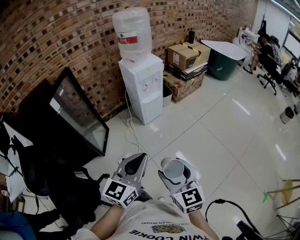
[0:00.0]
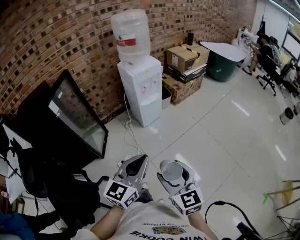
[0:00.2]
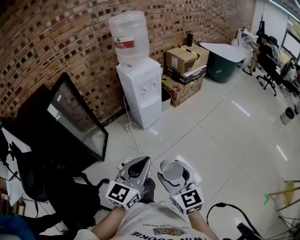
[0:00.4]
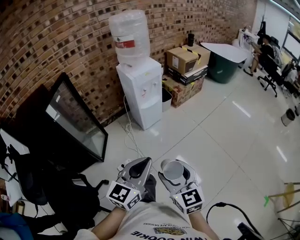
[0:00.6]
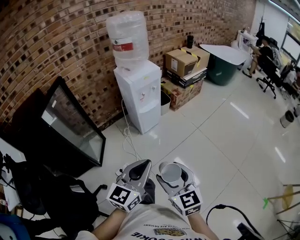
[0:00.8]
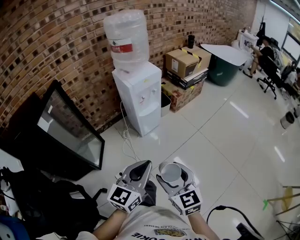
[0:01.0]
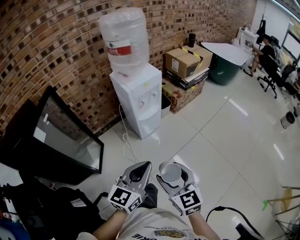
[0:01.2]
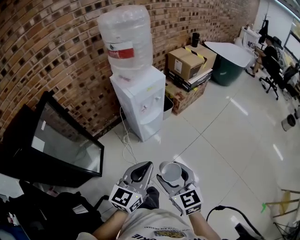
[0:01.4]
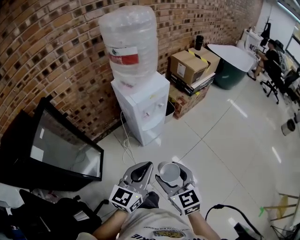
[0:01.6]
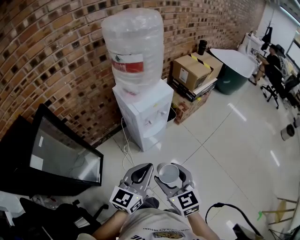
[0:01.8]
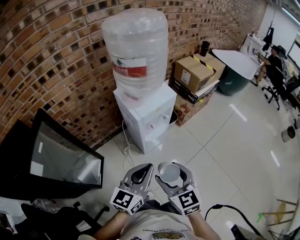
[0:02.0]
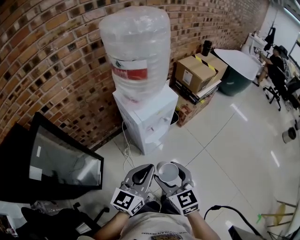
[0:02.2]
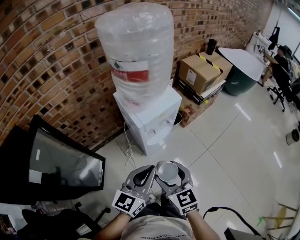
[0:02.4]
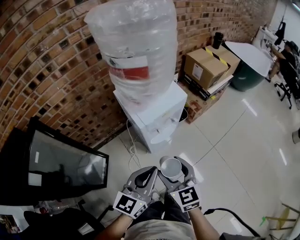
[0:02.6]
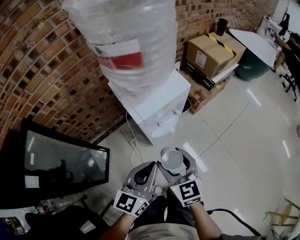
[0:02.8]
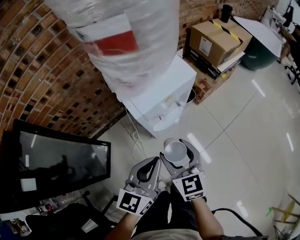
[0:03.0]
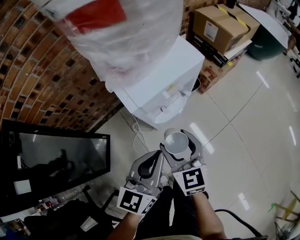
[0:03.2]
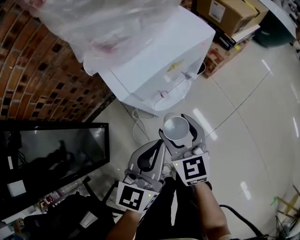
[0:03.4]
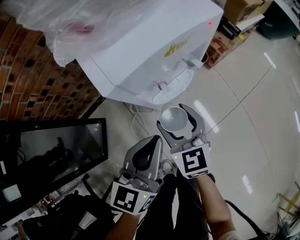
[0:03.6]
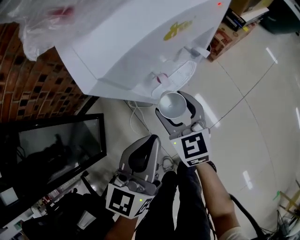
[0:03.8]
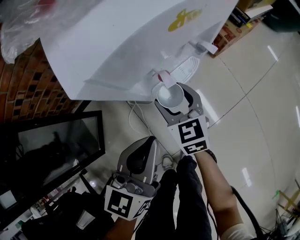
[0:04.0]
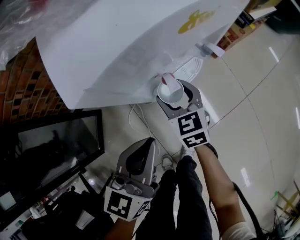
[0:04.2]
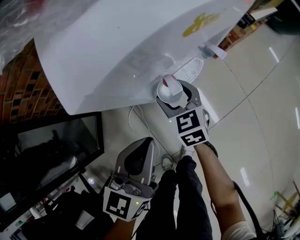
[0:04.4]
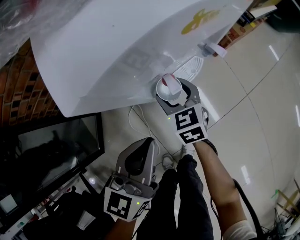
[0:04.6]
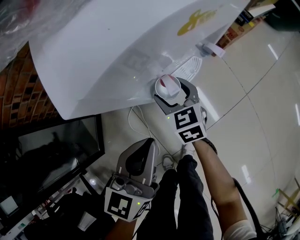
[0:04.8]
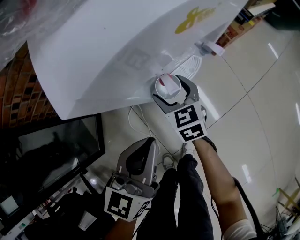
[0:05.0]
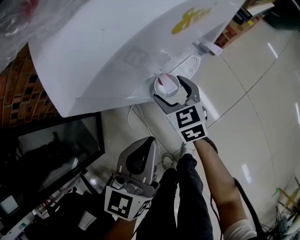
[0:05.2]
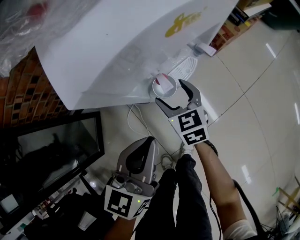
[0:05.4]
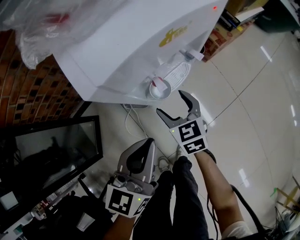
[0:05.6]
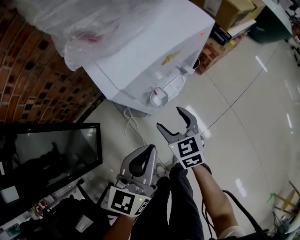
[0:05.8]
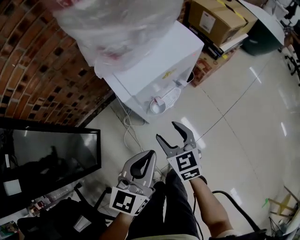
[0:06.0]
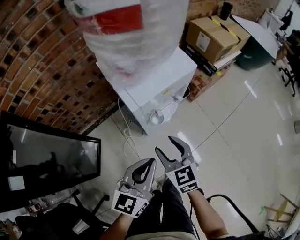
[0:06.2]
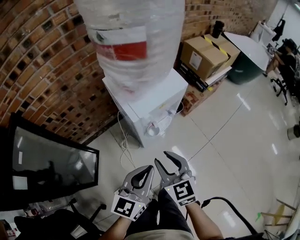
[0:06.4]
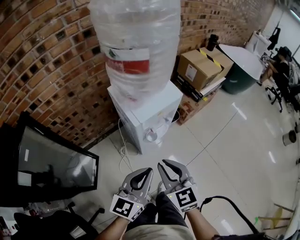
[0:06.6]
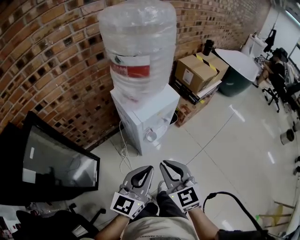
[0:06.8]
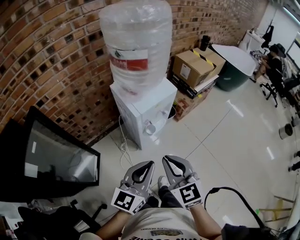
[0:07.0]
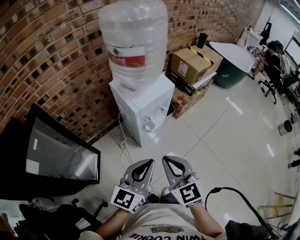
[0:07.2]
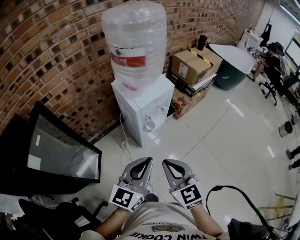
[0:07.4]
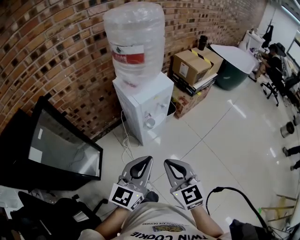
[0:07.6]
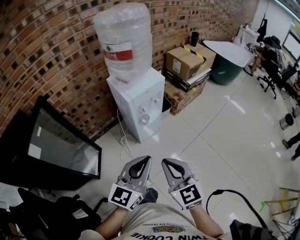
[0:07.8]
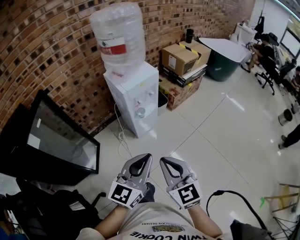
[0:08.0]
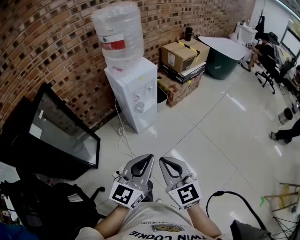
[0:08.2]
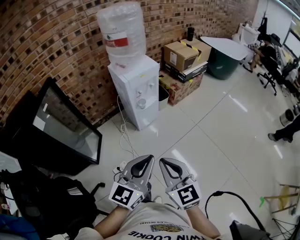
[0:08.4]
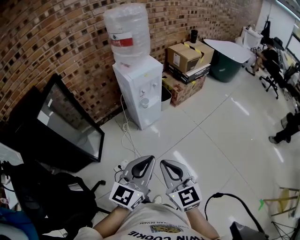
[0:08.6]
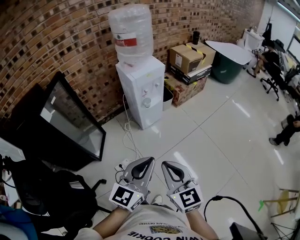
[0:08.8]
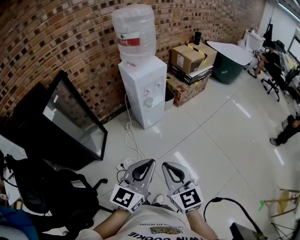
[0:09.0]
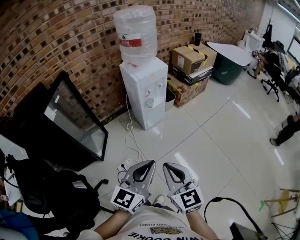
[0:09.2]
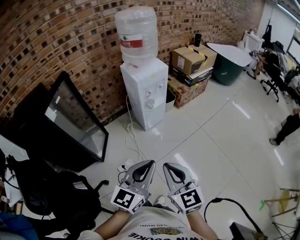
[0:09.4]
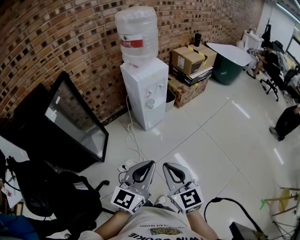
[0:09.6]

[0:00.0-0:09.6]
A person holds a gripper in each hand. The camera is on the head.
0:00.0 to 0:01.6: Both grippers move forward, approximately 30 cm.
0:01.6 to 0:03.2: Both grippers travel together forward and downward, some 30 cm.
0:03.2 to 0:04.8: The right gripper goes roughly 30 cm downward and forward. Meanwhile the left gripper is displaced downward by roughly 15 cm.
0:04.8 to 0:06.4: The left gripper heads upward and backward, covering some 20 cm. Meanwhile the right gripper is displaced upward and backward by approximately 35 cm, and closes up.
0:06.4 to 0:08.0: Both grippers move backward and upward, some 30 cm. The right gripper closes its fingers.
0:08.0 to 0:09.6: Both grippers travel together backward, about 15 cm.

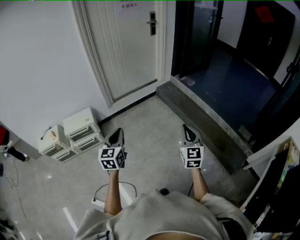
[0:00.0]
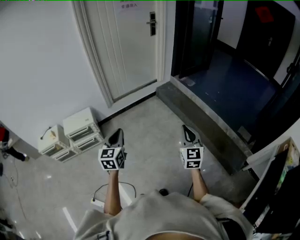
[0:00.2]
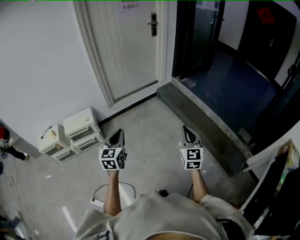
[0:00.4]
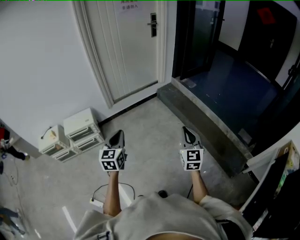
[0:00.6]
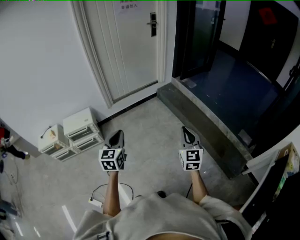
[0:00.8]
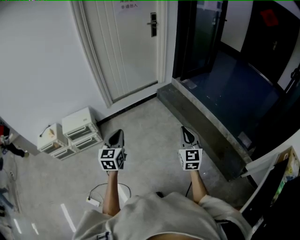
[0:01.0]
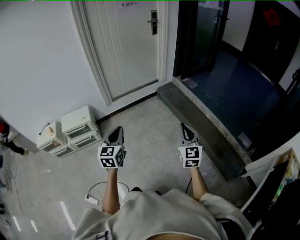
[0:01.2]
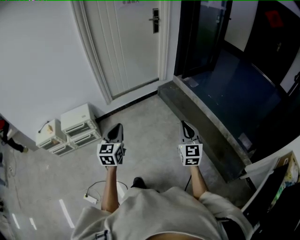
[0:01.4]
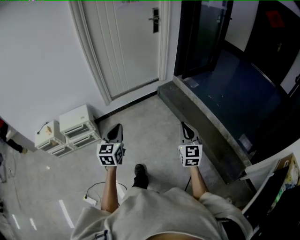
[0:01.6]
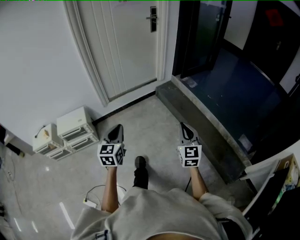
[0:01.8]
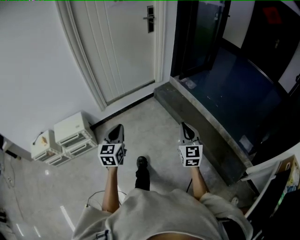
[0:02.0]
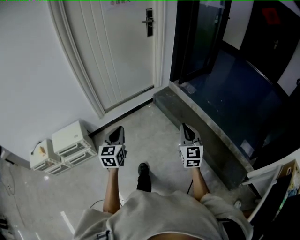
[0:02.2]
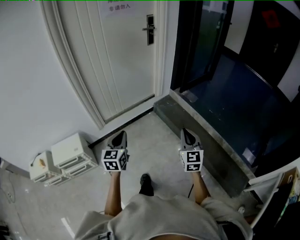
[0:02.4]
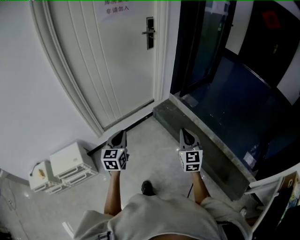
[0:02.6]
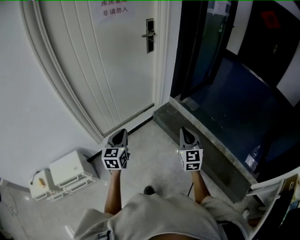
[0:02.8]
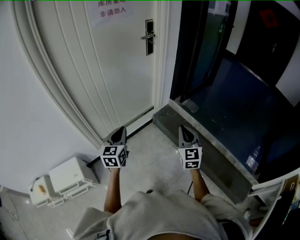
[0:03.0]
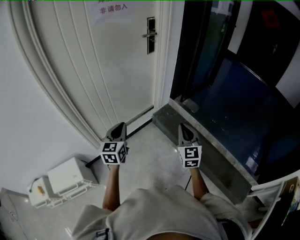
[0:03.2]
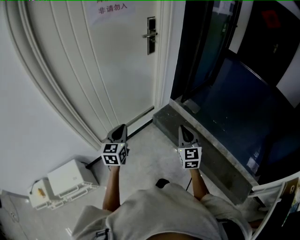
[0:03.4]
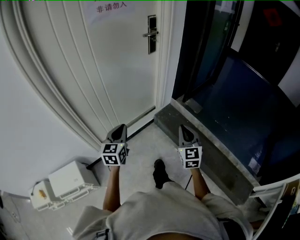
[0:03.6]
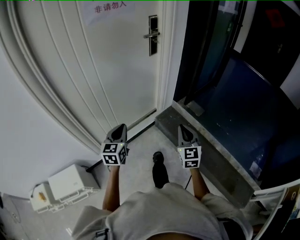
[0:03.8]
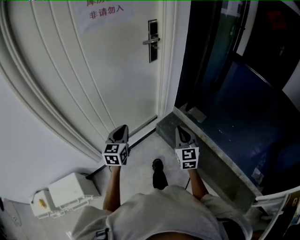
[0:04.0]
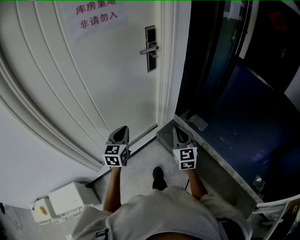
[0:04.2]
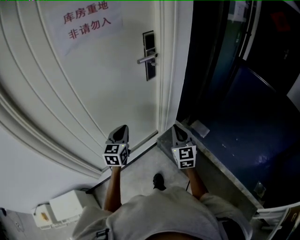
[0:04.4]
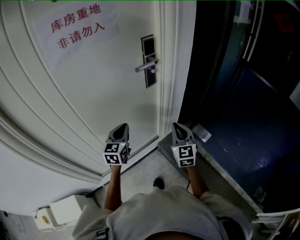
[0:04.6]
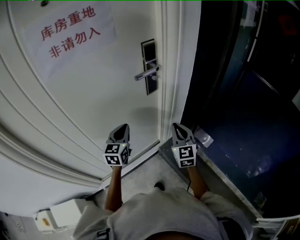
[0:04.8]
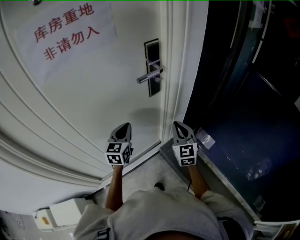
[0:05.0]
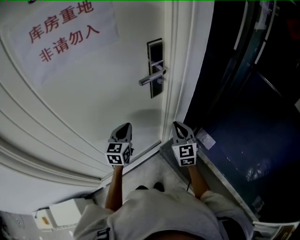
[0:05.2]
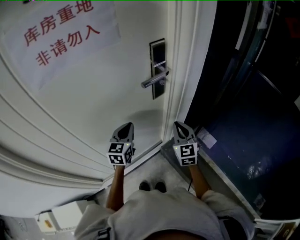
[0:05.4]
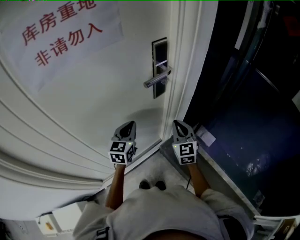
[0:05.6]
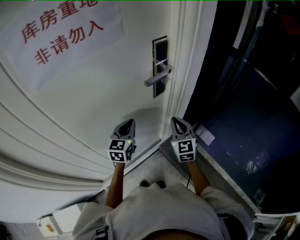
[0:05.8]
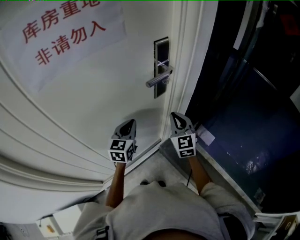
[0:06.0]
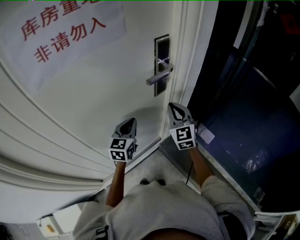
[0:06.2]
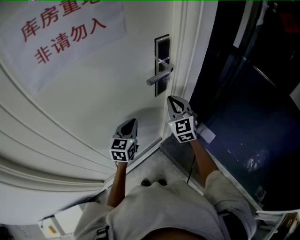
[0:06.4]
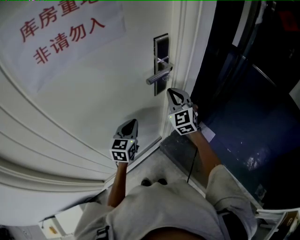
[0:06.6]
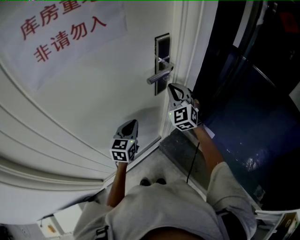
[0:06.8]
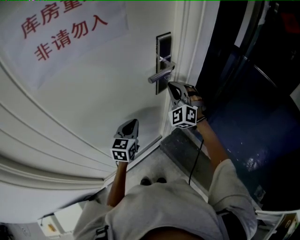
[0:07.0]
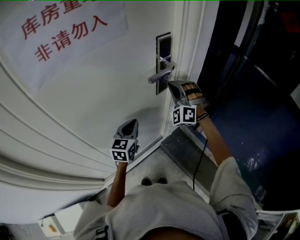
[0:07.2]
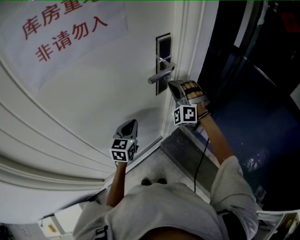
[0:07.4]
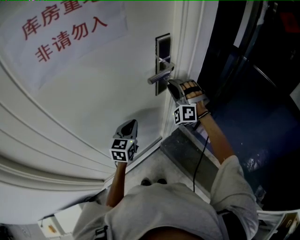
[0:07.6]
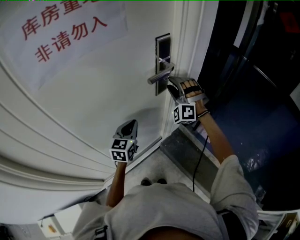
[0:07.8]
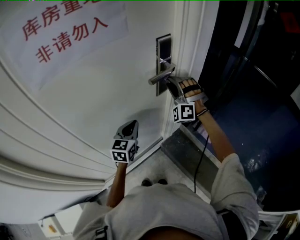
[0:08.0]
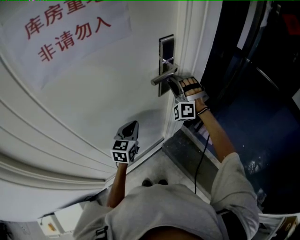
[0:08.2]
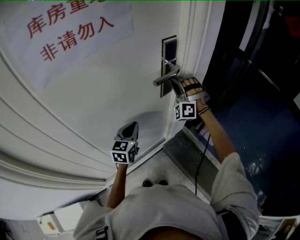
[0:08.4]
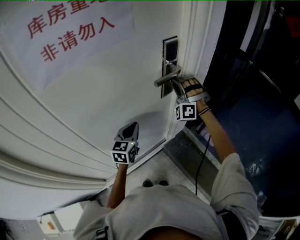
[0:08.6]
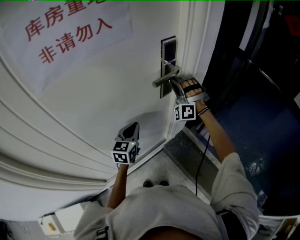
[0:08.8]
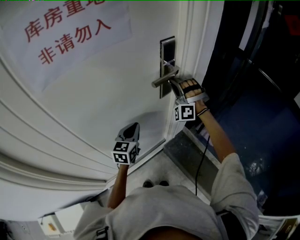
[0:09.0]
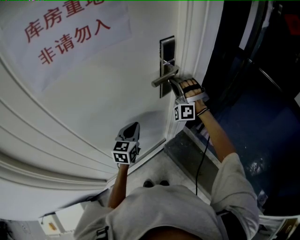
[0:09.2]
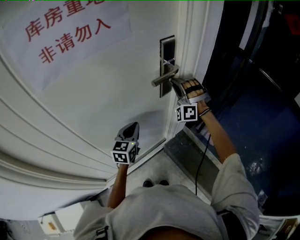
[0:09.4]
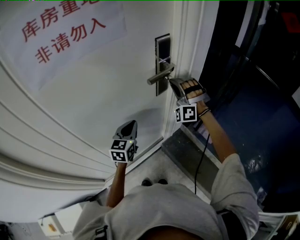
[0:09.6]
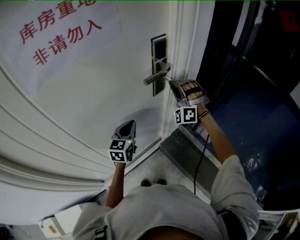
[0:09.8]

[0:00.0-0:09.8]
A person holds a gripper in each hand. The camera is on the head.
0:00.0 to 0:01.4: The right gripper is displaced forward and to the right by roughly 10 cm. Meanwhile the left gripper heads to the right and forward, covering approximately 10 cm.
0:01.4 to 0:02.8: The pair of grippers is taken forward, about 50 cm.
0:02.8 to 0:04.2: The two grippers go about 35 cm forward.
0:04.2 to 0:05.6: The two grippers go some 30 cm forward.
0:05.6 to 0:07.0: The right gripper shifts some 15 cm forward, upward and to the left, and rotates around the line of its fingers by about 50 degrees, counterclockwise from behind.
0:07.0 to 0:08.4: The right gripper swivels roughly 30 degrees, and opens, then closes again.
0:08.4 to 0:09.8: There are only small adjustments of the grippers.

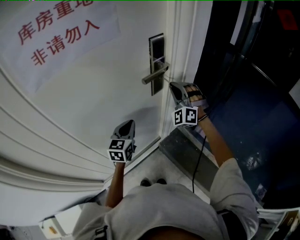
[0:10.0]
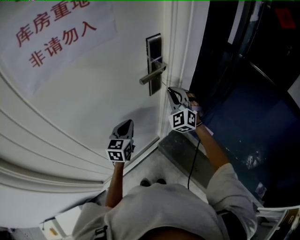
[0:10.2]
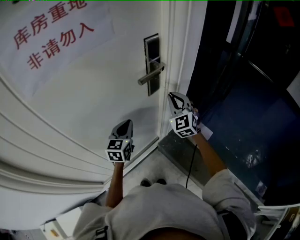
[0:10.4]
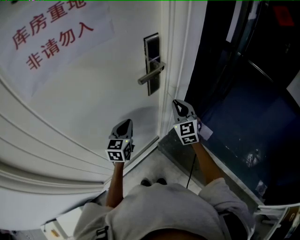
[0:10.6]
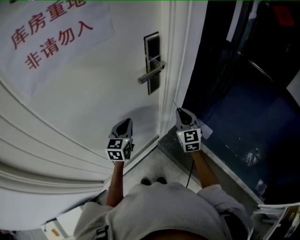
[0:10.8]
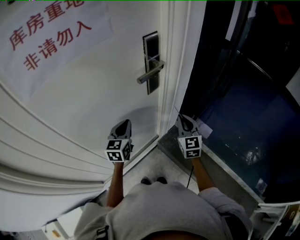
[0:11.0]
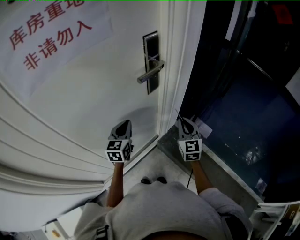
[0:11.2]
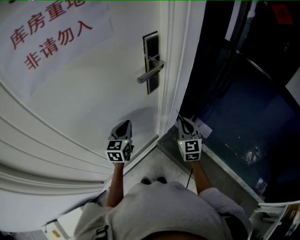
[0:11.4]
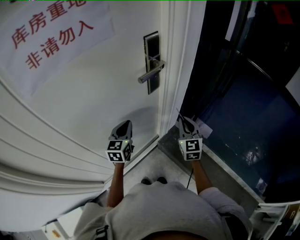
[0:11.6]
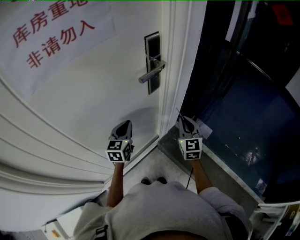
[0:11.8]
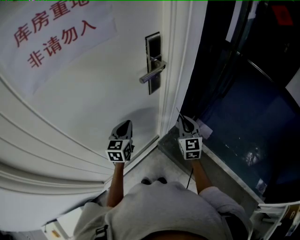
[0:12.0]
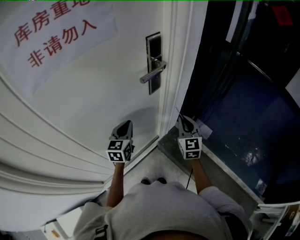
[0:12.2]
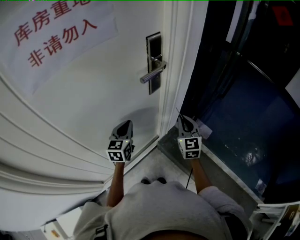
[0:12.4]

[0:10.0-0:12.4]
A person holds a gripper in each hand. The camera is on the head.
0:10.0 to 0:11.2: The right gripper heads backward, downward and to the right, covering approximately 15 cm, and twists about 60 degrees clockwise, seen from behind.
0:11.2 to 0:12.4: Both grippers stay about where they are.

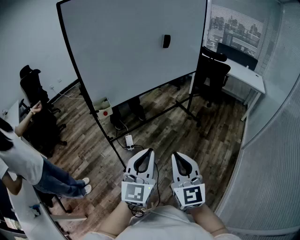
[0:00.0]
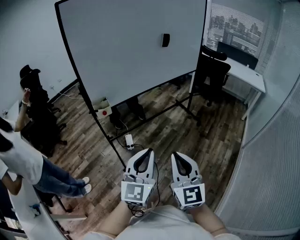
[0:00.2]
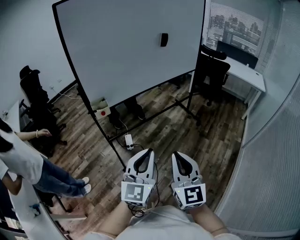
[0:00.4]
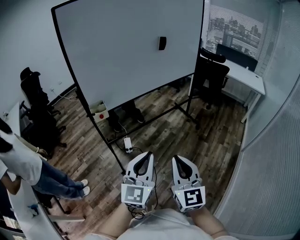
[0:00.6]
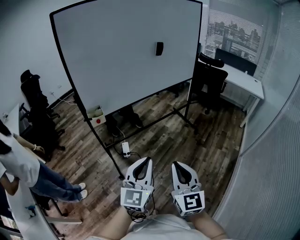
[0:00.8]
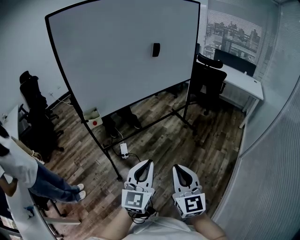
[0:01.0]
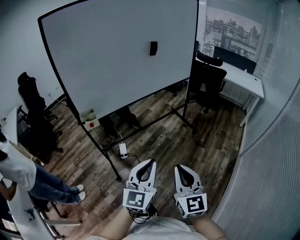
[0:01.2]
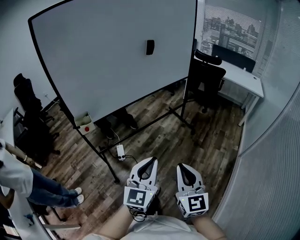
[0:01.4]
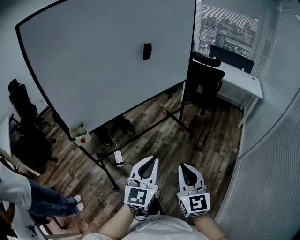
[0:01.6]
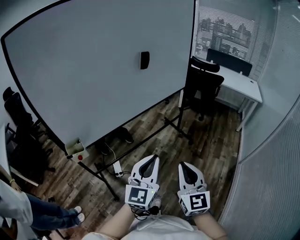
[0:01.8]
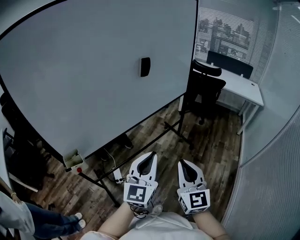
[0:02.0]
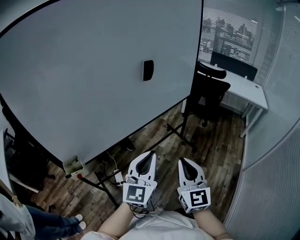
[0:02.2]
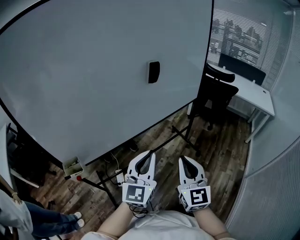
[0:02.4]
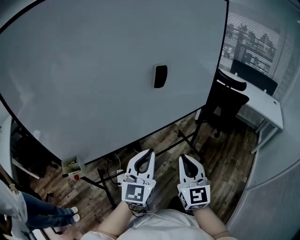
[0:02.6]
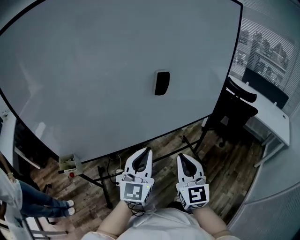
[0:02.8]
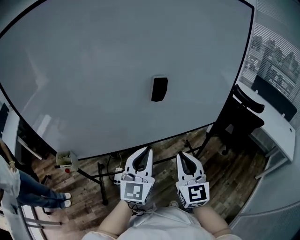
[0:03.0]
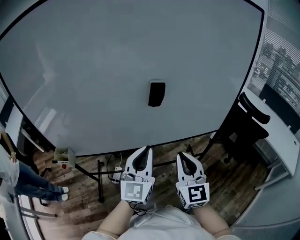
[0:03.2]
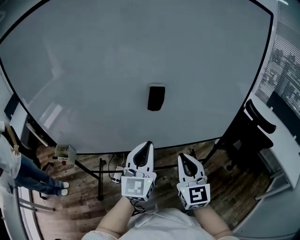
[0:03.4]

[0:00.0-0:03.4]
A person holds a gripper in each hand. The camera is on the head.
0:00.0 to 0:01.6: The grippers both shift forward and to the right by approximately 20 cm.
0:01.6 to 0:03.4: The two grippers travel together, some 50 cm. The left gripper changes its angle by some 40 degrees. The right gripper swivels about 30 degrees.
